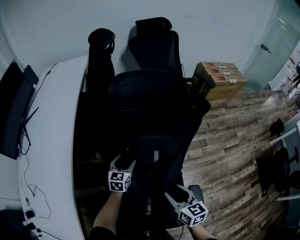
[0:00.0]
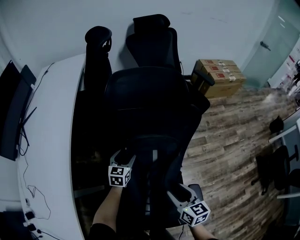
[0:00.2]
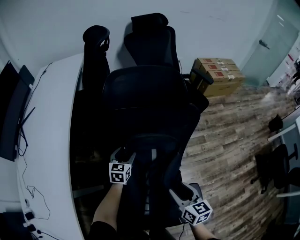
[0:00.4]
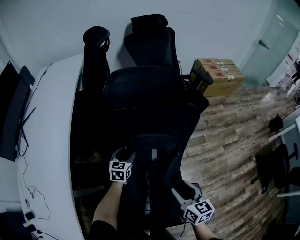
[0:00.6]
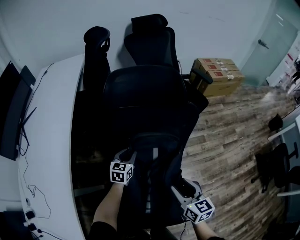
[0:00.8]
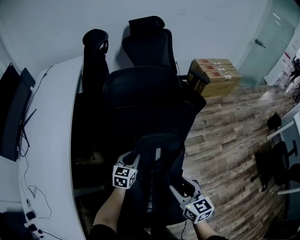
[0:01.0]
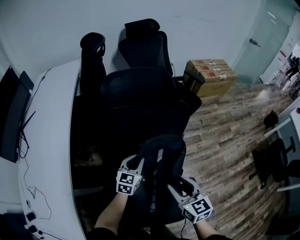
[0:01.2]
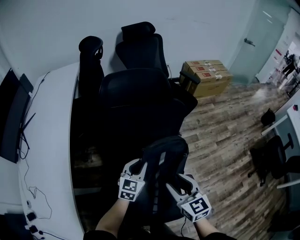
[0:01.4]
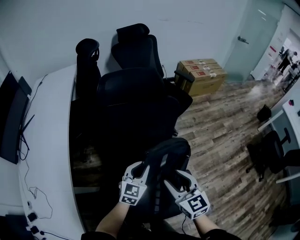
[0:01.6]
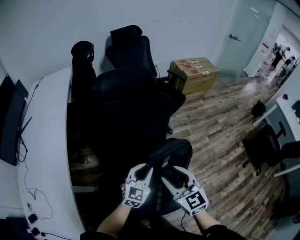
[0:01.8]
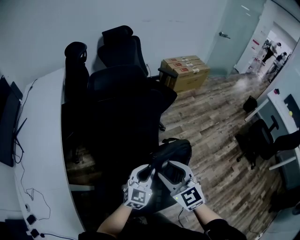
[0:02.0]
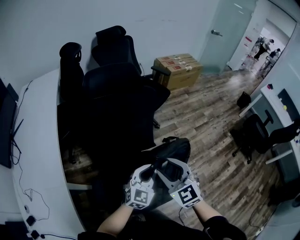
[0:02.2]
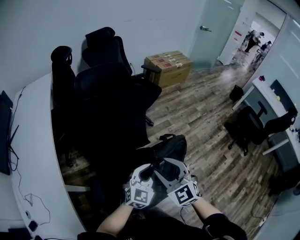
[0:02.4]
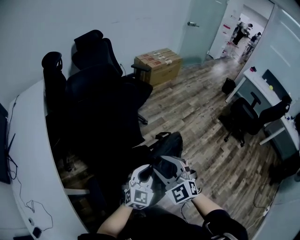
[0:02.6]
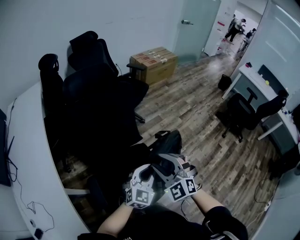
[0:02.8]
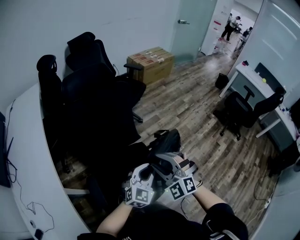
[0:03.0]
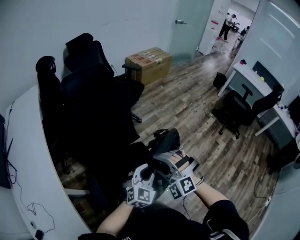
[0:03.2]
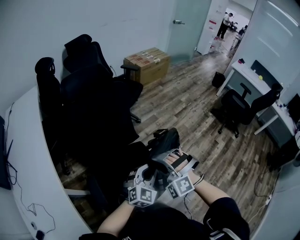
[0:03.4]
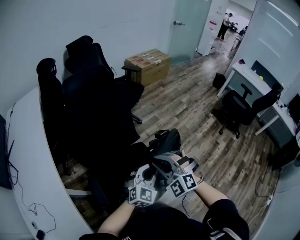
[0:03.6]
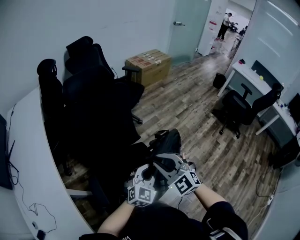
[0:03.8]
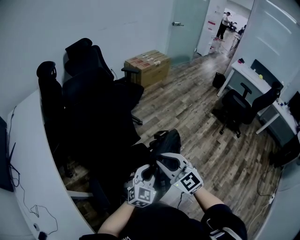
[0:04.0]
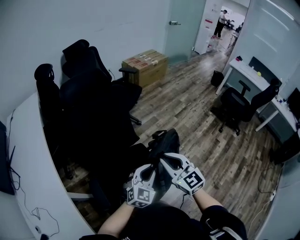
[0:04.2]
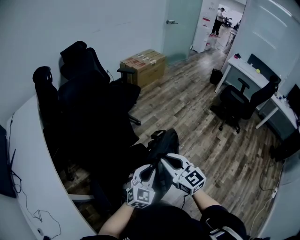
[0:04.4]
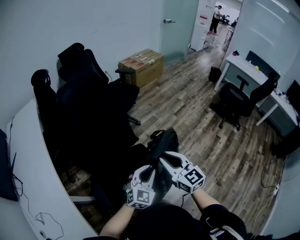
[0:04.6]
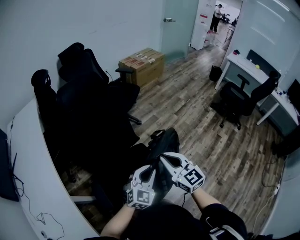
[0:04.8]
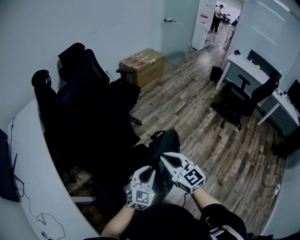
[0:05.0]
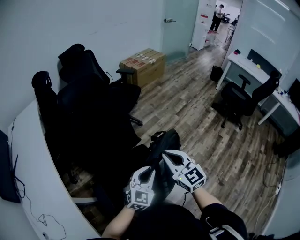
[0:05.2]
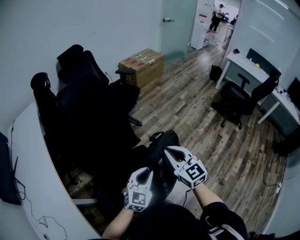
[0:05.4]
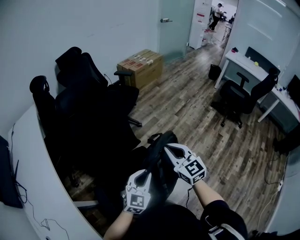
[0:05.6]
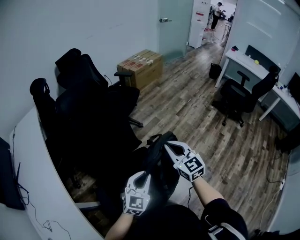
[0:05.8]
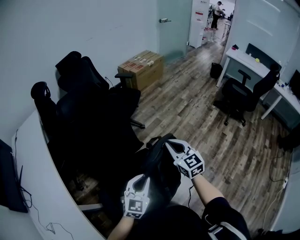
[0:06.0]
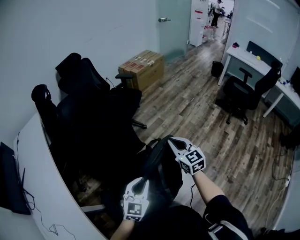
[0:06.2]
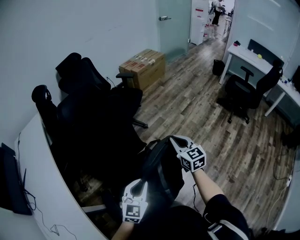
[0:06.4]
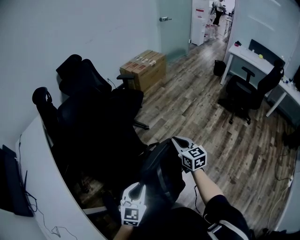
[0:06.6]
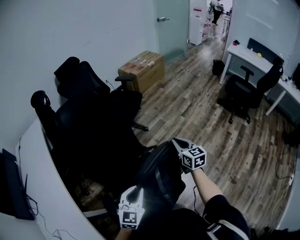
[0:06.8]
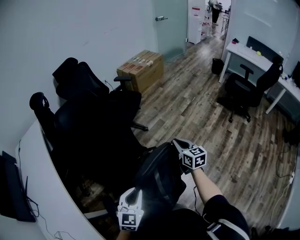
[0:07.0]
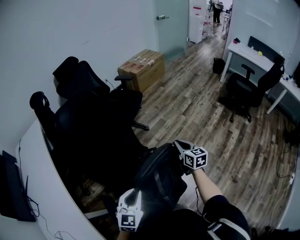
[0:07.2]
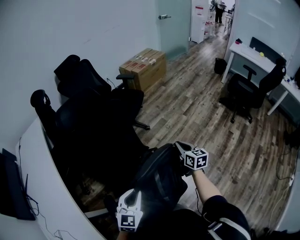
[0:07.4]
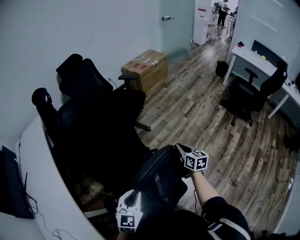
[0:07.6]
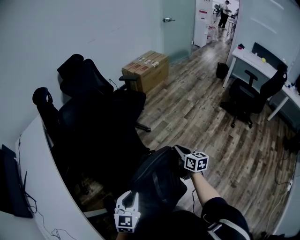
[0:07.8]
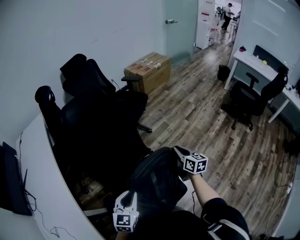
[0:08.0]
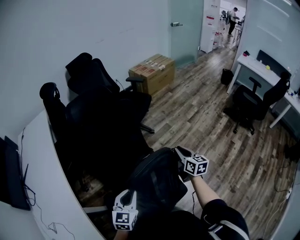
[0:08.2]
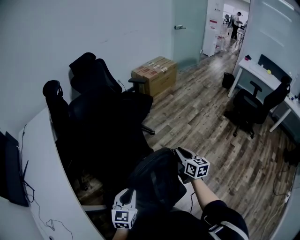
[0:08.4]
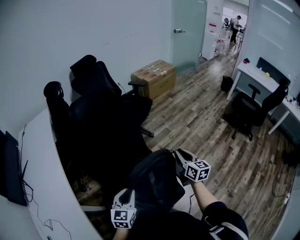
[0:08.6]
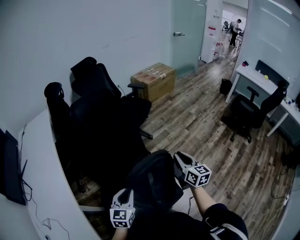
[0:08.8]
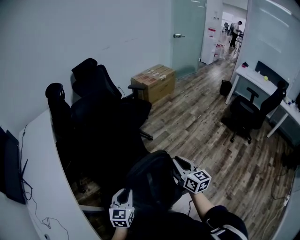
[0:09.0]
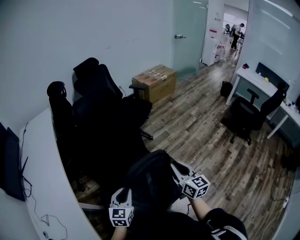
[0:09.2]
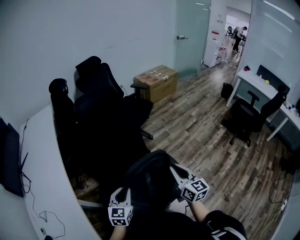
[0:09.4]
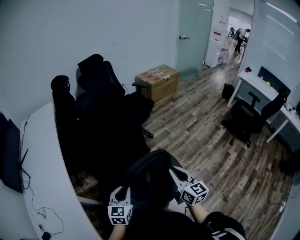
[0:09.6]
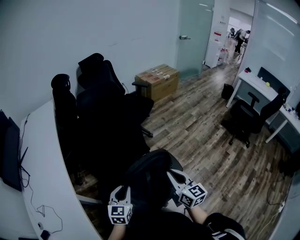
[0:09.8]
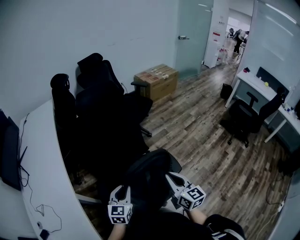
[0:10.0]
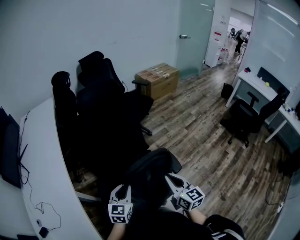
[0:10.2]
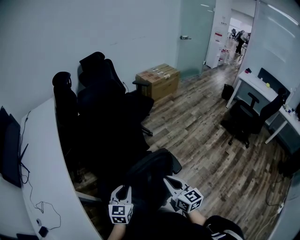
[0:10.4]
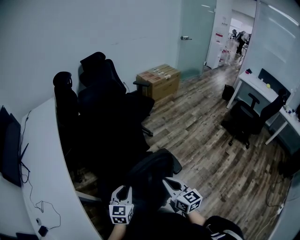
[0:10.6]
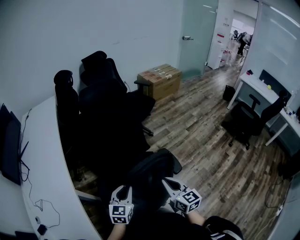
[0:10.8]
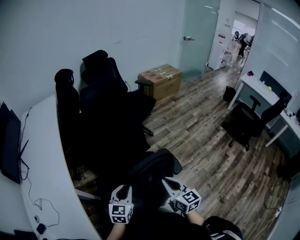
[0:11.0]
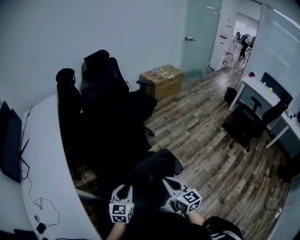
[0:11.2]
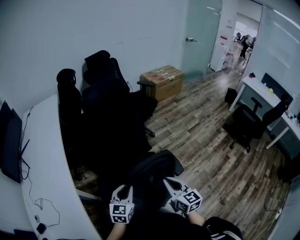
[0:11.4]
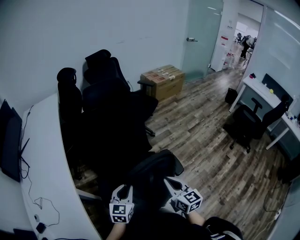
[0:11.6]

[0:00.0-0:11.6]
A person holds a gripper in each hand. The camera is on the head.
0:00.0 to 0:01.4: The left gripper goes roughly 20 cm to the right, backward and upward, rotates about 20 degrees, and closes its fingers, while the right gripper shifts roughly 10 cm upward.
0:01.4 to 0:02.8: The right gripper shifts roughly 20 cm backward, and rotates around the line of its fingers by some 40 degrees, counterclockwise from behind. The left gripper goes approximately 35 cm backward and to the right, and changes its angle by some 30 degrees.
0:02.8 to 0:04.4: The right gripper is displaced to the right by some 5 cm, rotates around the line of its fingers by approximately 40 degrees, clockwise from behind, and closes its fingers.
0:04.4 to 0:05.8: The right gripper goes some 10 cm forward.
0:05.8 to 0:07.2: The right gripper shifts roughly 20 cm downward, forward and to the right, and changes its angle by about 30 degrees. The left gripper is displaced to the left by approximately 5 cm.
0:07.2 to 0:08.8: The right gripper shifts roughly 15 cm backward, upward and to the left. The left gripper travels to the left by some 5 cm.
0:08.8 to 0:10.2: The right gripper heads backward and to the left, covering some 20 cm; the left gripper moves backward, roughly 5 cm.
0:10.2 to 0:11.6: The grippers stay close to where they were, moving slightly.

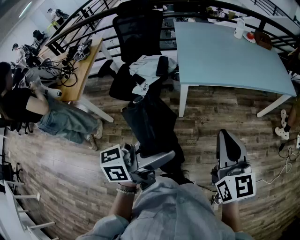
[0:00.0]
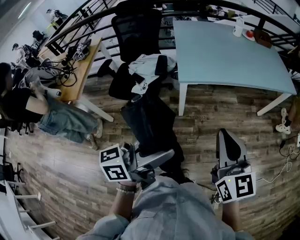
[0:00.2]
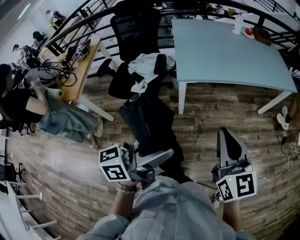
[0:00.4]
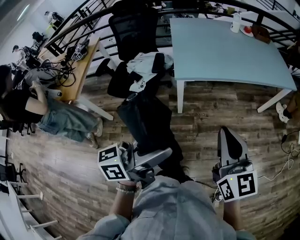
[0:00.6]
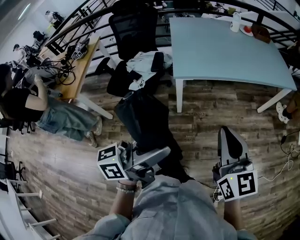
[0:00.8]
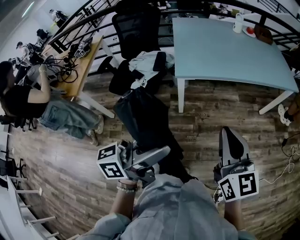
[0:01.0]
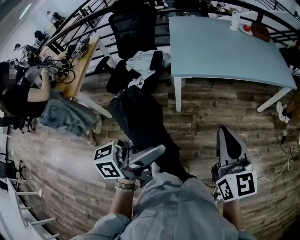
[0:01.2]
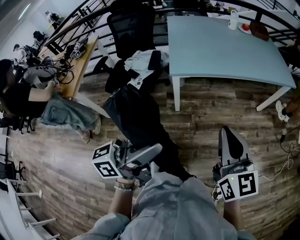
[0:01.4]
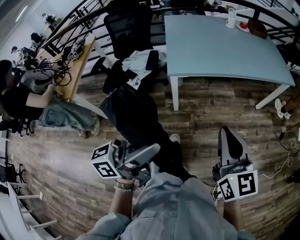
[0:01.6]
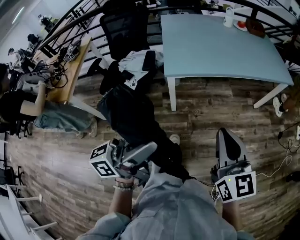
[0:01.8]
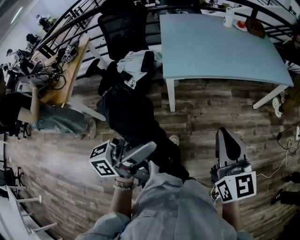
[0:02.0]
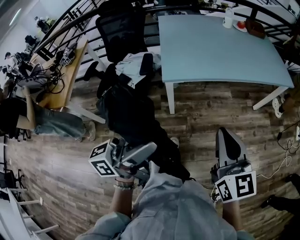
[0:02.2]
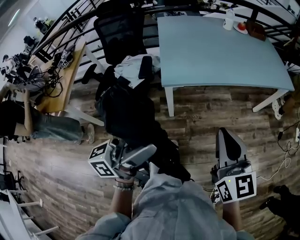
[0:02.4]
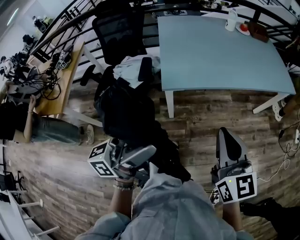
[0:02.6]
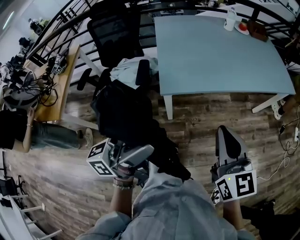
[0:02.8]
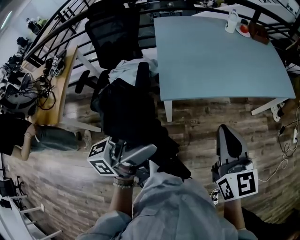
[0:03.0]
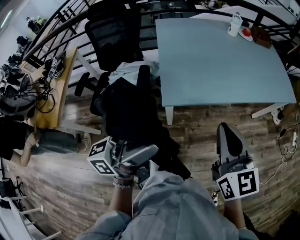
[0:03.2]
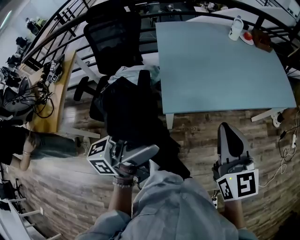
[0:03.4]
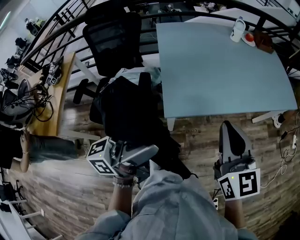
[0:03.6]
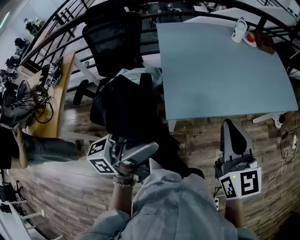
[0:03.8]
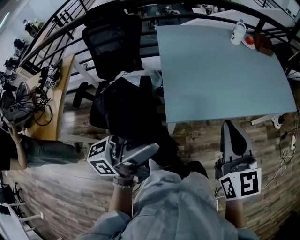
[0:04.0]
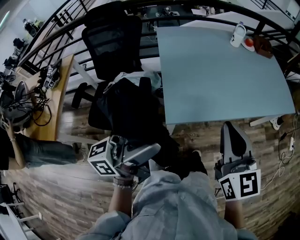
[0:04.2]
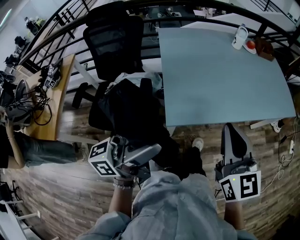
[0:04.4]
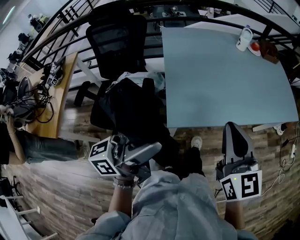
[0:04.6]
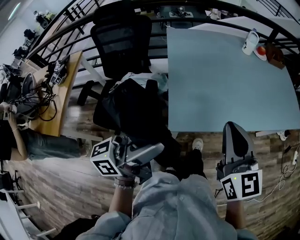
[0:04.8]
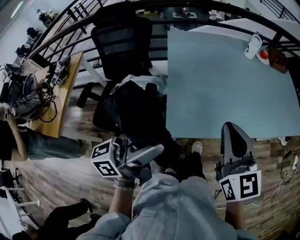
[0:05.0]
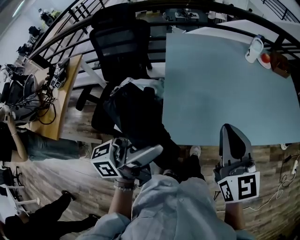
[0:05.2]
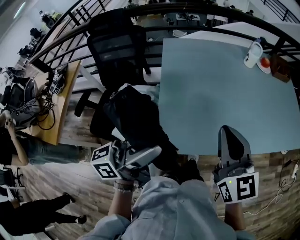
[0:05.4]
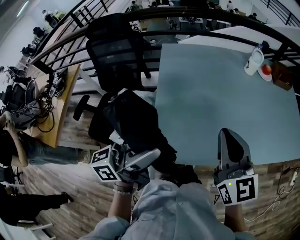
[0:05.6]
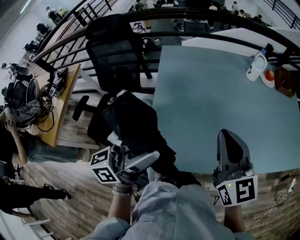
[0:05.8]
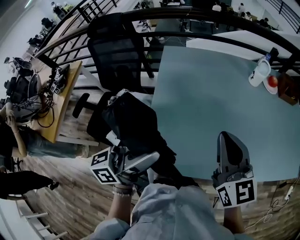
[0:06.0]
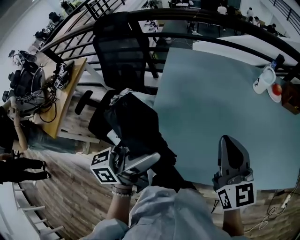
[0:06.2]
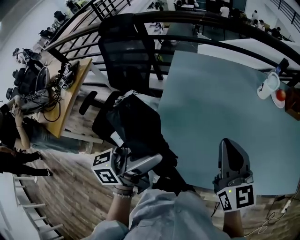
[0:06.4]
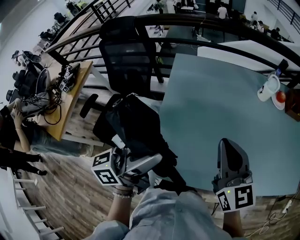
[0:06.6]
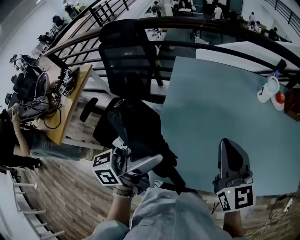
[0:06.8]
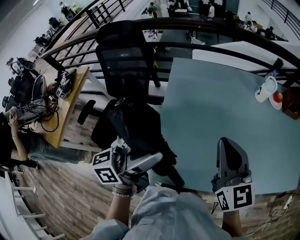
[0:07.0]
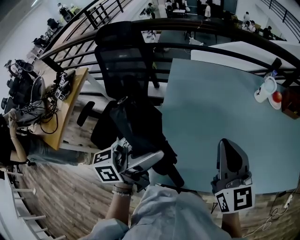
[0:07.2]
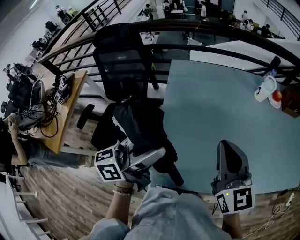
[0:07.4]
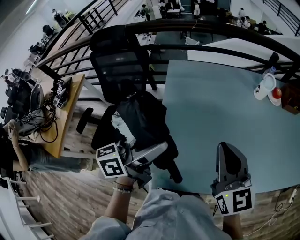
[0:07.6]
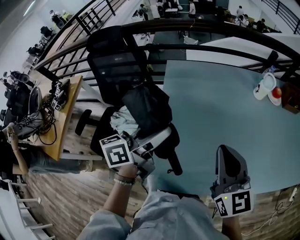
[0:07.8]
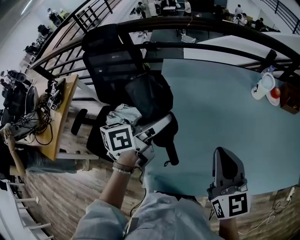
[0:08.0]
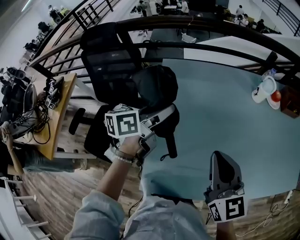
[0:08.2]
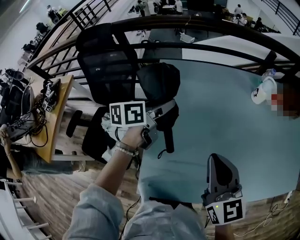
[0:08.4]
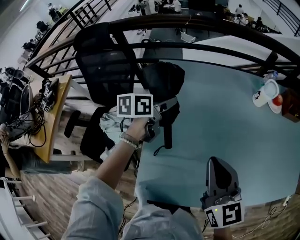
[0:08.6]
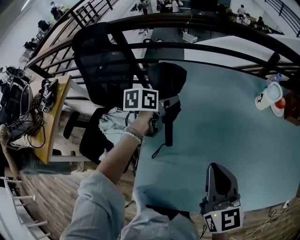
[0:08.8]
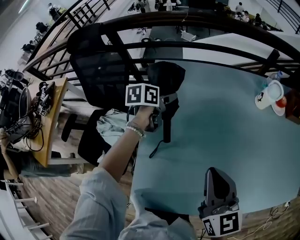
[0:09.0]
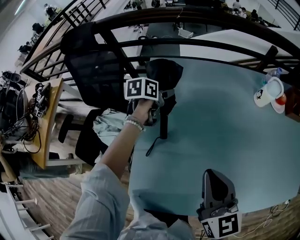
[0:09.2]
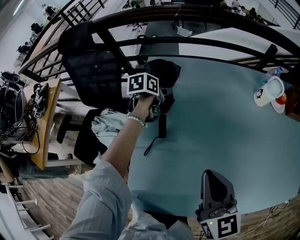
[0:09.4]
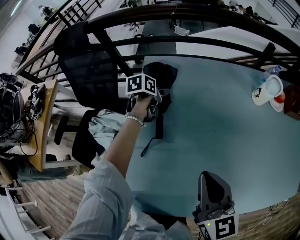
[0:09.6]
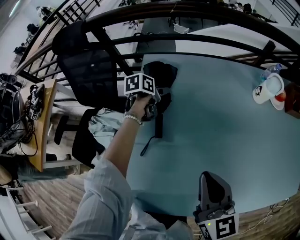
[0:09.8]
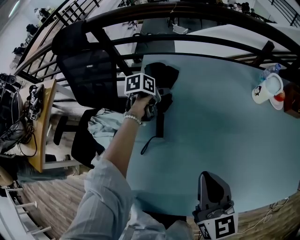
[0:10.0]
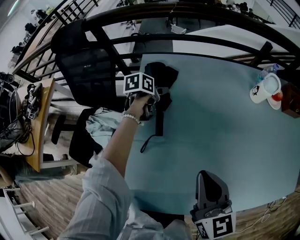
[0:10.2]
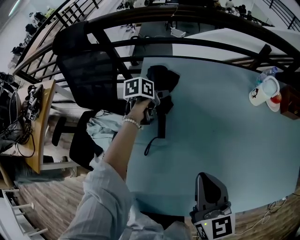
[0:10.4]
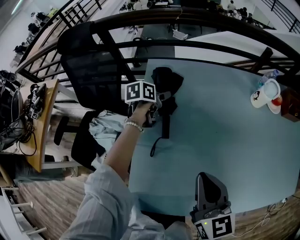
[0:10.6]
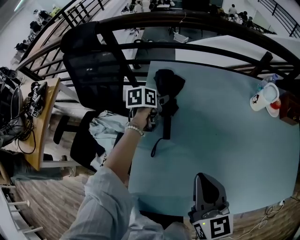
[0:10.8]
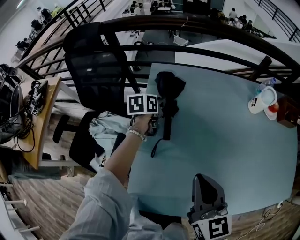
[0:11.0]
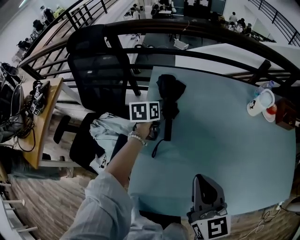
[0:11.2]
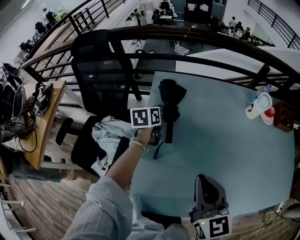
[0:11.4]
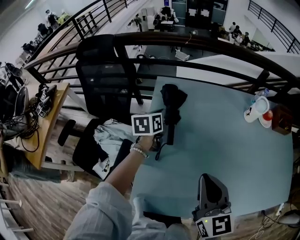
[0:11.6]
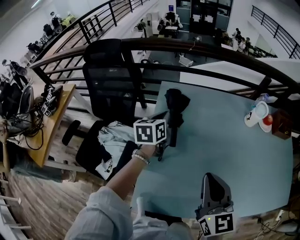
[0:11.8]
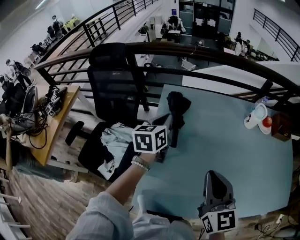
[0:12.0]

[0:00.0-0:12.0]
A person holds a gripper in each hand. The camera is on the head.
0:00.0 to 0:01.6: The right gripper moves to the right, some 10 cm.
0:01.6 to 0:03.0: The right gripper is displaced forward and to the left by some 20 cm. Meanwhile the left gripper moves forward, roughly 20 cm.
0:03.0 to 0:04.4: Both grippers move forward and to the left, roughly 15 cm.
0:04.4 to 0:06.0: Both grippers move forward, approximately 30 cm.
0:06.0 to 0:07.6: The left gripper is displaced forward and to the left by some 10 cm. Meanwhile the right gripper changes place by roughly 5 cm.
0:07.6 to 0:09.0: The left gripper moves forward and downward, approximately 35 cm, and angles its fingers downward, by some 40 degrees, while the right gripper moves downward and forward, some 10 cm.
0:09.0 to 0:10.4: The left gripper heads downward, covering some 5 cm.
0:10.4 to 0:12.0: The right gripper moves upward, approximately 10 cm. Meanwhile the left gripper goes some 25 cm upward and backward, changes its angle by about 40 degrees, and closes its fingers.
